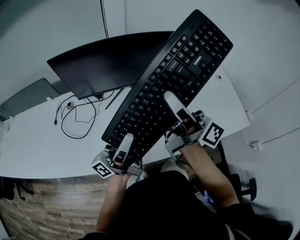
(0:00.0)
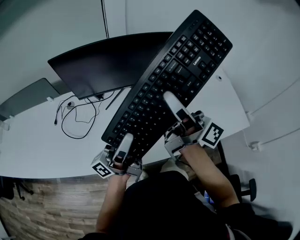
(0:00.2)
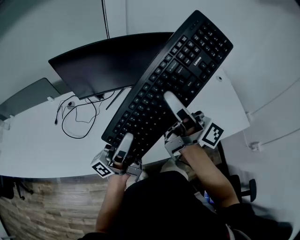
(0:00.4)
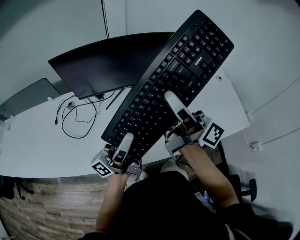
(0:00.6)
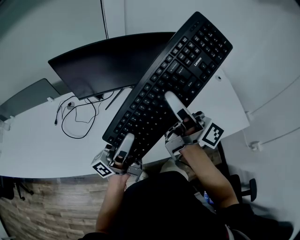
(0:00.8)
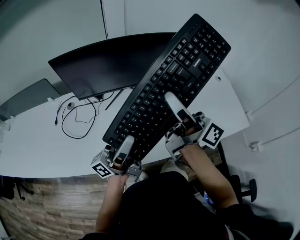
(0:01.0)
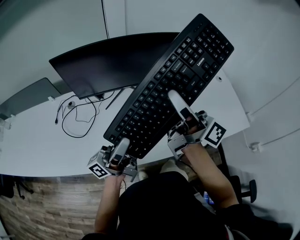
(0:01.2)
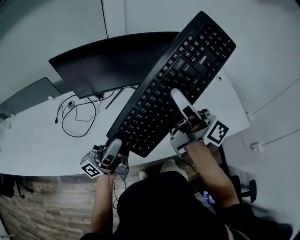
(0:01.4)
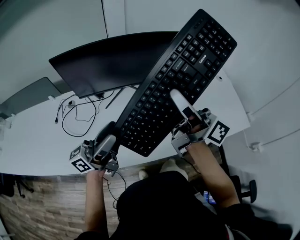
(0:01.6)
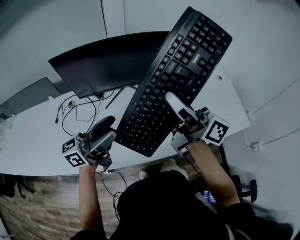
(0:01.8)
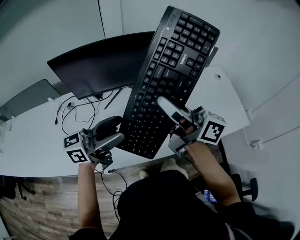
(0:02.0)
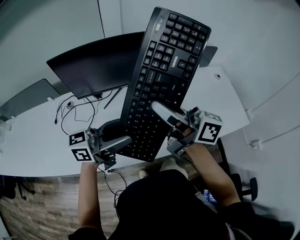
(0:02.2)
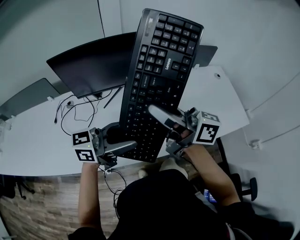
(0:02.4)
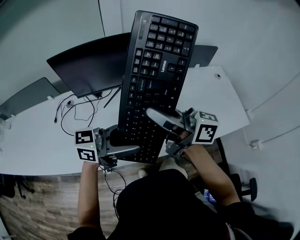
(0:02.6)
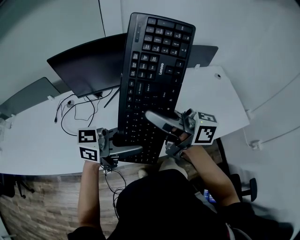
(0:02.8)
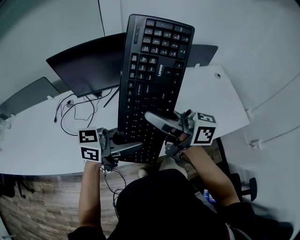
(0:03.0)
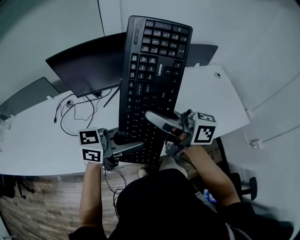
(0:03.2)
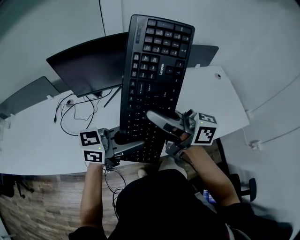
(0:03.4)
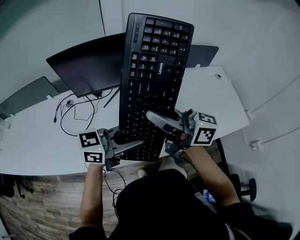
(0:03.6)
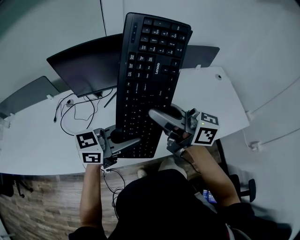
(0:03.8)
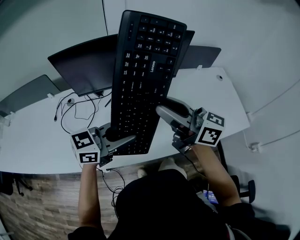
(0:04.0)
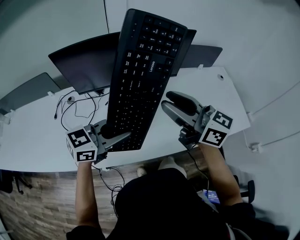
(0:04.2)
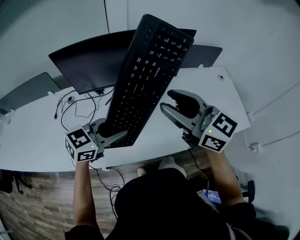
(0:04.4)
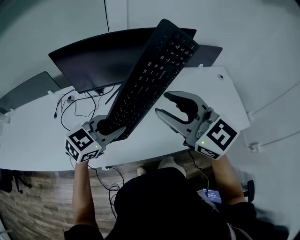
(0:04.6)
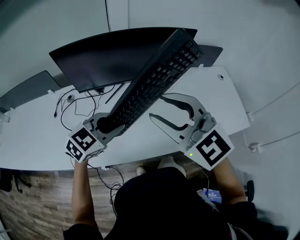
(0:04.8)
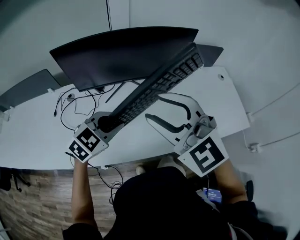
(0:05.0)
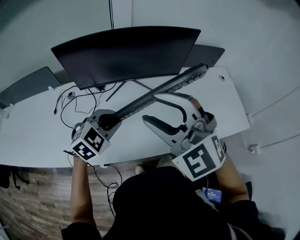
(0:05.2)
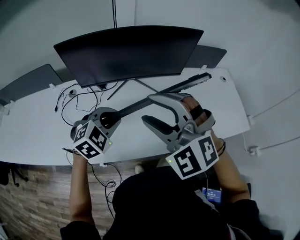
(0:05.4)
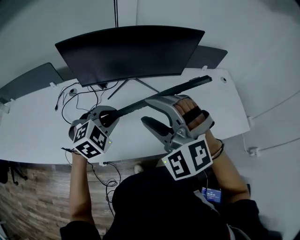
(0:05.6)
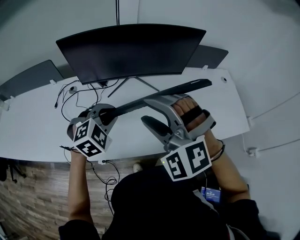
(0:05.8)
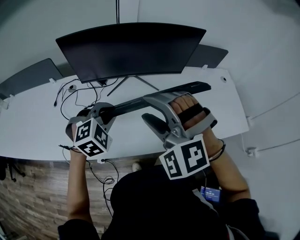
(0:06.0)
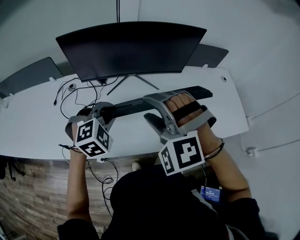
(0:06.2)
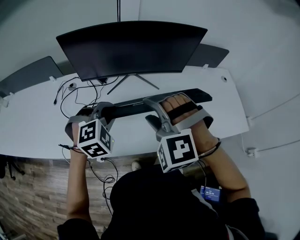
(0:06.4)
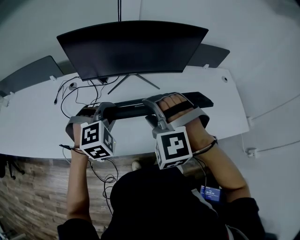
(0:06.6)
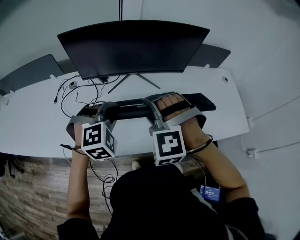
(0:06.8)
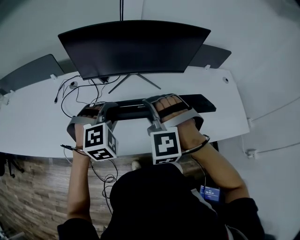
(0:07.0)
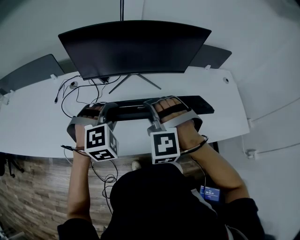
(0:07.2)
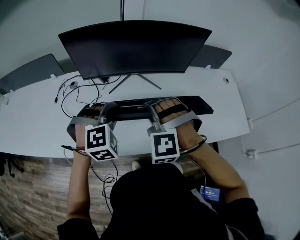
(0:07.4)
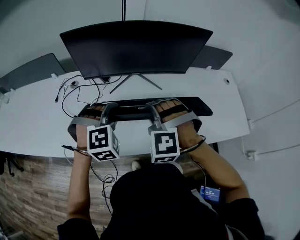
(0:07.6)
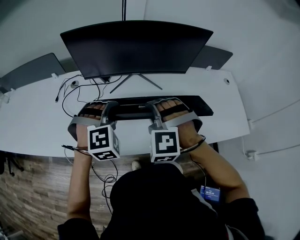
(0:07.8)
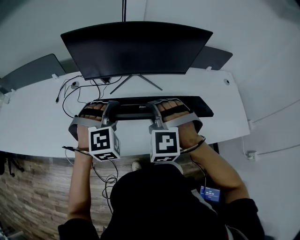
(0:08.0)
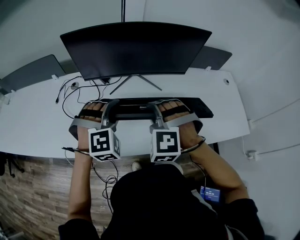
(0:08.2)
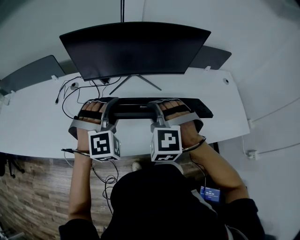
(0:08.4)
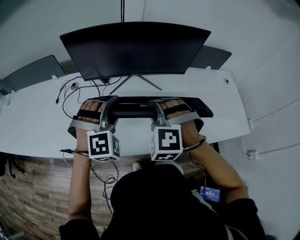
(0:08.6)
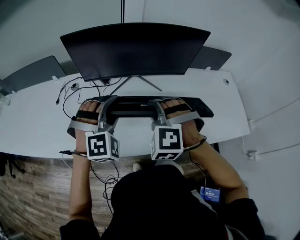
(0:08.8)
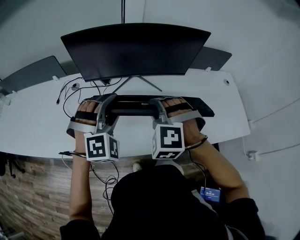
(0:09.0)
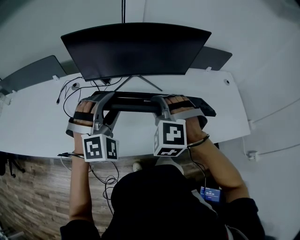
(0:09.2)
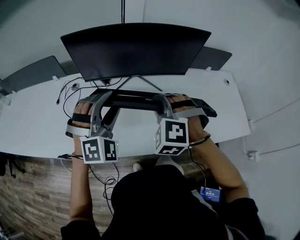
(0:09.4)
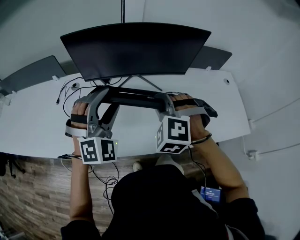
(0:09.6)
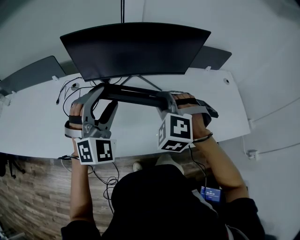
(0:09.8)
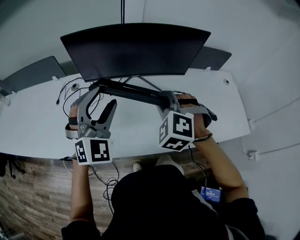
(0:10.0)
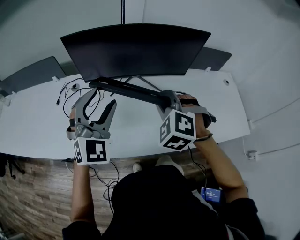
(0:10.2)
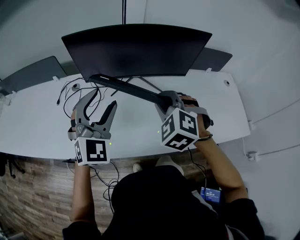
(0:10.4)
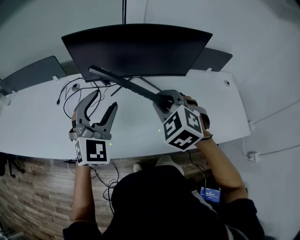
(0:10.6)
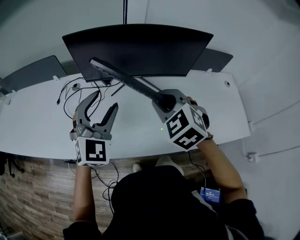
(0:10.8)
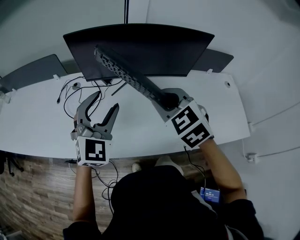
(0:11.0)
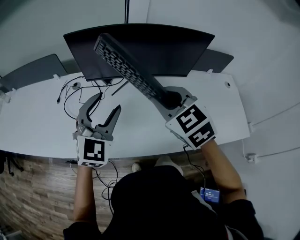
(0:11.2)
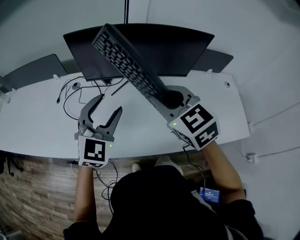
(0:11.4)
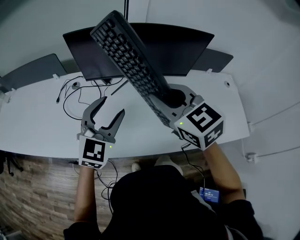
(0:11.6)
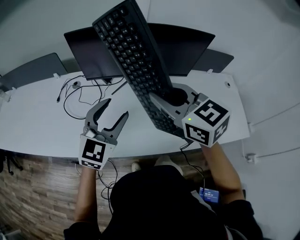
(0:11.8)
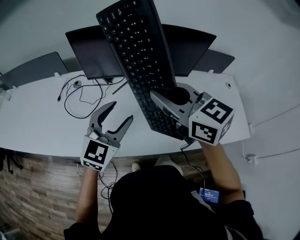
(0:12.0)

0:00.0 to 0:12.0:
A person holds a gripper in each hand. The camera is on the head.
0:00.0 to 0:01.6: The left gripper is displaced to the left by approximately 5 cm, turns by about 30 degrees, and opens up.
0:01.6 to 0:03.0: The left gripper changes place by approximately 10 cm, points its fingers some 50 degrees further downward, and closes.
0:03.0 to 0:04.4: The right gripper moves about 10 cm, and swivels about 40 degrees. Meanwhile the left gripper changes place by approximately 10 cm, and turns by roughly 30 degrees.
0:04.4 to 0:06.0: The left gripper moves downward, approximately 5 cm, and turns by approximately 60 degrees. Meanwhile the right gripper goes approximately 10 cm to the left and backward, and twists some 70 degrees counterclockwise, seen from behind.
0:06.0 to 0:07.6: The right gripper is displaced downward by approximately 10 cm, and closes.
0:07.6 to 0:09.0: The left gripper travels upward by approximately 5 cm, and opens.
0:09.0 to 0:10.4: The left gripper shifts roughly 5 cm upward, and turns by approximately 40 degrees. Meanwhile the right gripper changes its angle by approximately 20 degrees.
0:10.4 to 0:12.0: The left gripper moves approximately 5 cm, and changes its angle by approximately 30 degrees. Meanwhile the right gripper is displaced upward by some 10 cm, and rotates approximately 60 degrees.

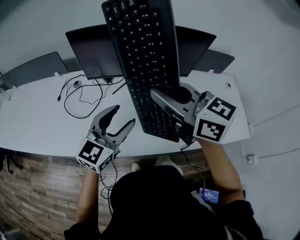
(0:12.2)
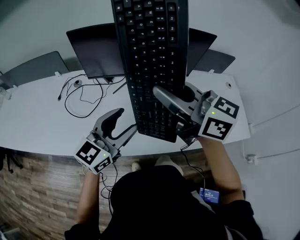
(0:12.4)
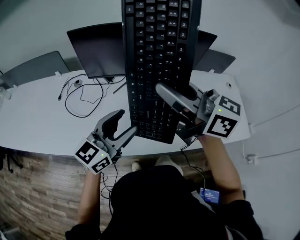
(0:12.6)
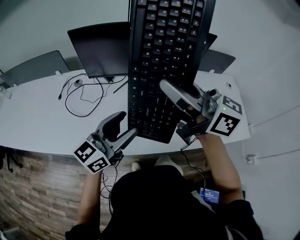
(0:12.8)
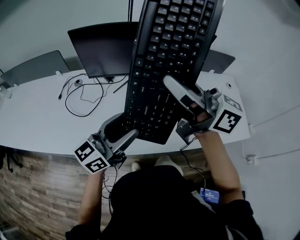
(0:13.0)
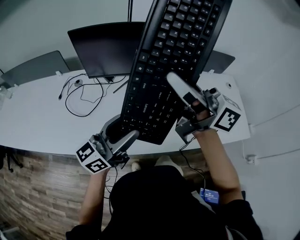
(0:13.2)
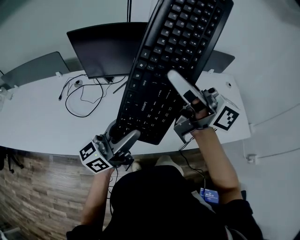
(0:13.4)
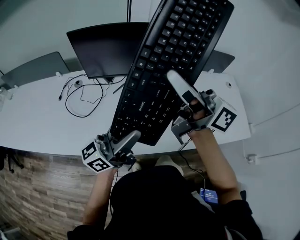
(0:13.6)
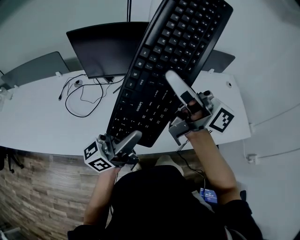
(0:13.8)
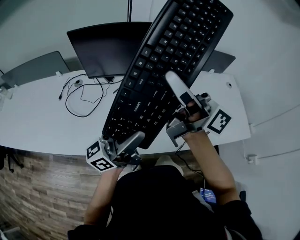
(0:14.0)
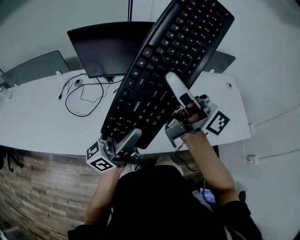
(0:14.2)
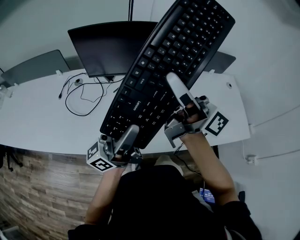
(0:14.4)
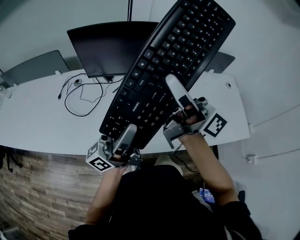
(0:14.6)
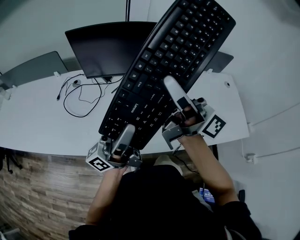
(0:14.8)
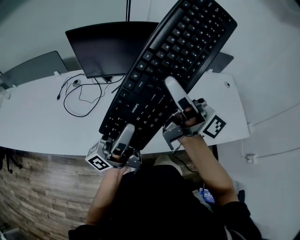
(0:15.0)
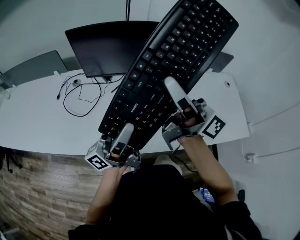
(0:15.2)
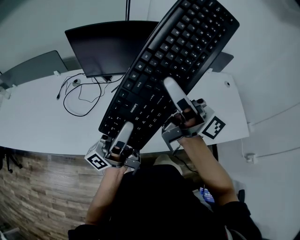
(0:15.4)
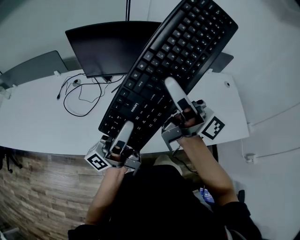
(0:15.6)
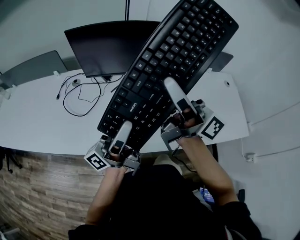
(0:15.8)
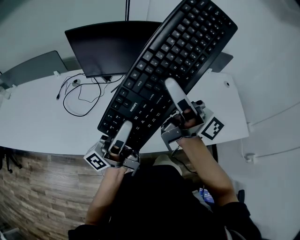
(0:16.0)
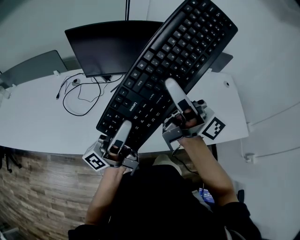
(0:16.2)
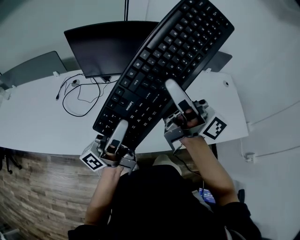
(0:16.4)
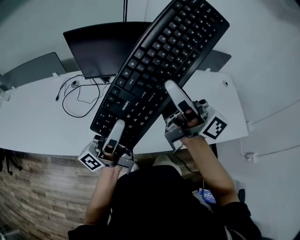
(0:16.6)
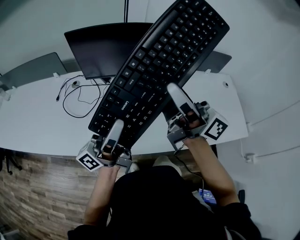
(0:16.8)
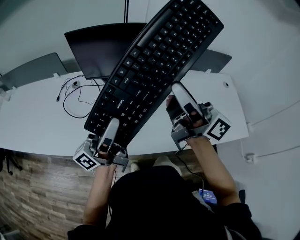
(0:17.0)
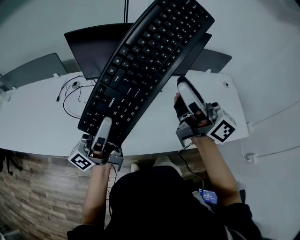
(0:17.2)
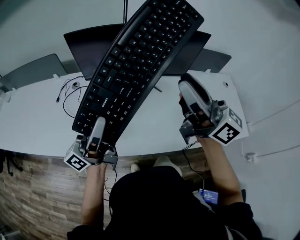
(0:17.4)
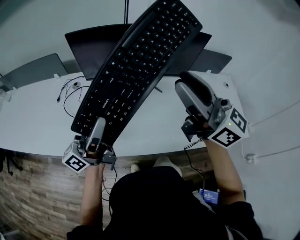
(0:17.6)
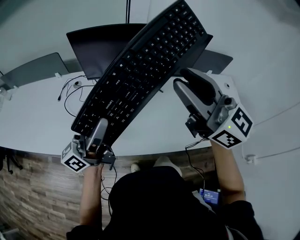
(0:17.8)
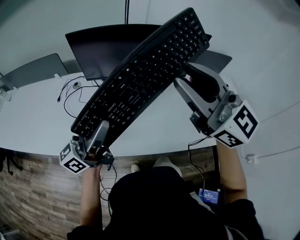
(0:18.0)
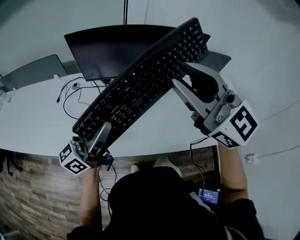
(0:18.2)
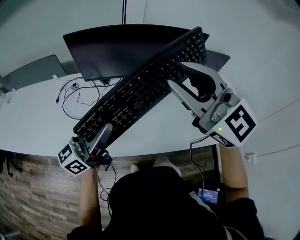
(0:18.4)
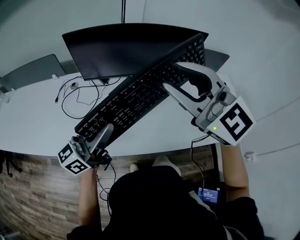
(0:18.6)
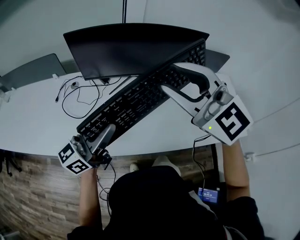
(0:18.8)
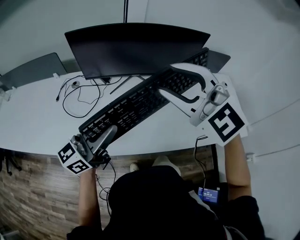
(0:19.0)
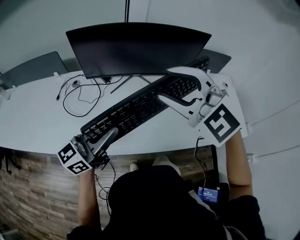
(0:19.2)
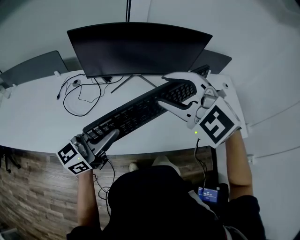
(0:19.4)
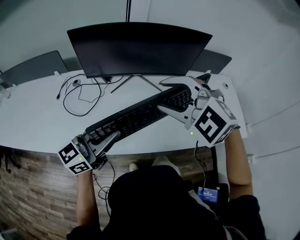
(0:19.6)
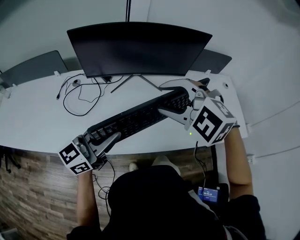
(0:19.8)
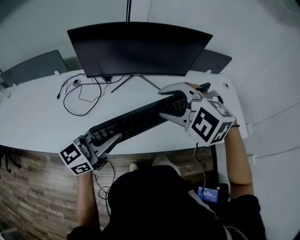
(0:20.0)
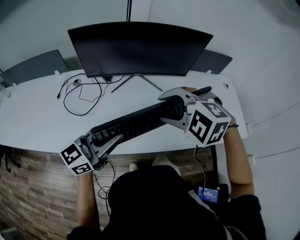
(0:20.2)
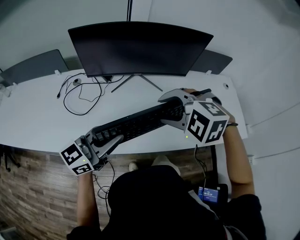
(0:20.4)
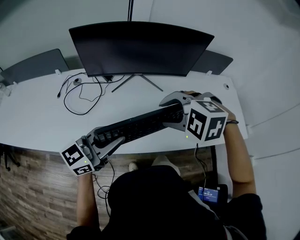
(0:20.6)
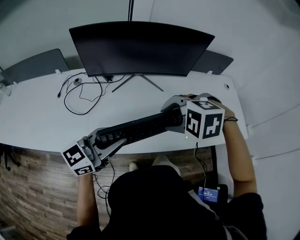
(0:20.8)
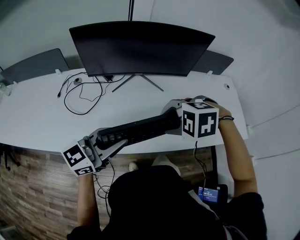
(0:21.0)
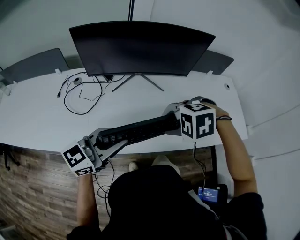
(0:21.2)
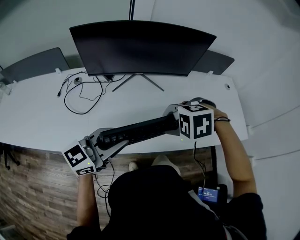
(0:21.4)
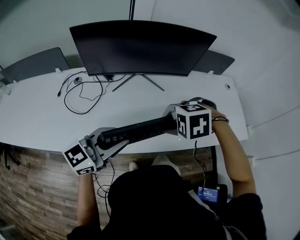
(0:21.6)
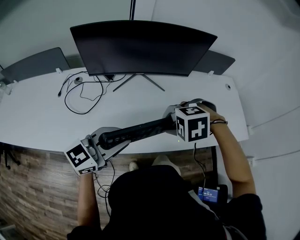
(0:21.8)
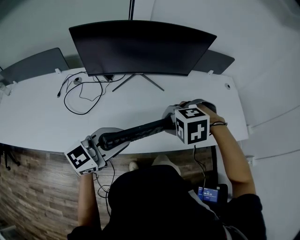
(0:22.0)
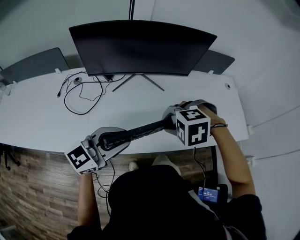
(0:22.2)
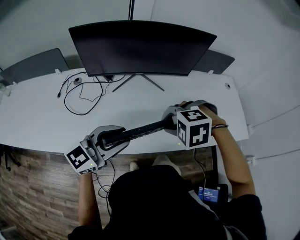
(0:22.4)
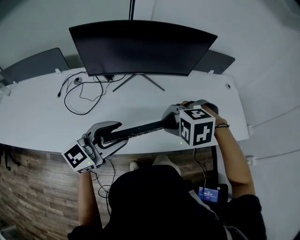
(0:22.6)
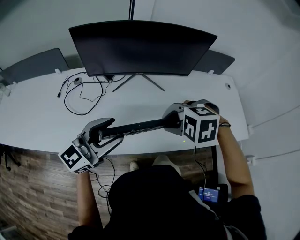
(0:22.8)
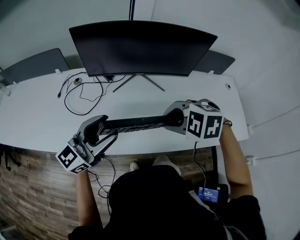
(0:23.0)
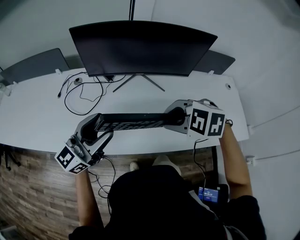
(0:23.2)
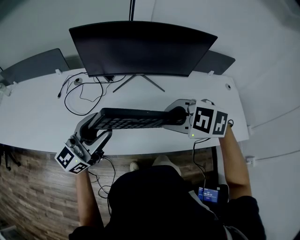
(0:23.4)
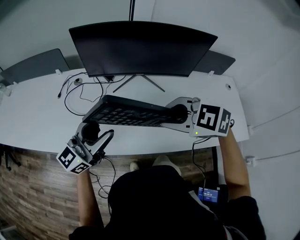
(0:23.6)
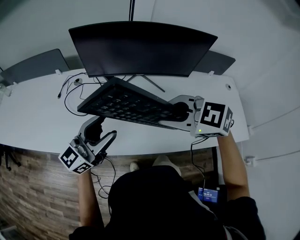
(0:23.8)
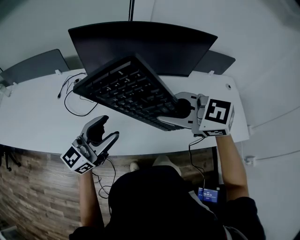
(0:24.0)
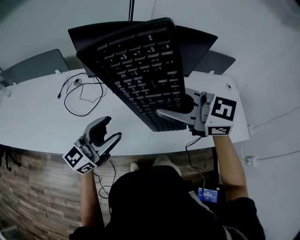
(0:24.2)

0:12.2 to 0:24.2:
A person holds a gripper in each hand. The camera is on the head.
0:12.2 to 0:13.8: Both grippers move upward, approximately 5 cm. The right gripper tilts its fingers approximately 40 degrees upward; the left gripper tilts its fingers about 40 degrees upward.
0:13.8 to 0:15.2: The left gripper swivels some 20 degrees, and closes up.
0:15.2 to 0:16.6: There are only small adjustments of the grippers.
0:16.6 to 0:18.2: The right gripper heads upward, covering about 10 cm, and rolls counterclockwise, seen from behind, by roughly 60 degrees.
0:18.2 to 0:19.8: The left gripper heads to the right, covering approximately 5 cm, and changes its angle by some 30 degrees. The right gripper is displaced downward by approximately 15 cm, and angles its fingers downward, by roughly 40 degrees.
0:19.8 to 0:21.2: The right gripper shifts about 10 cm downward, and tilts its fingers approximately 40 degrees downward.
0:21.2 to 0:22.6: The left gripper opens.
0:22.6 to 0:24.2: The right gripper shifts roughly 10 cm upward, and angles its fingers upward, by approximately 50 degrees.
